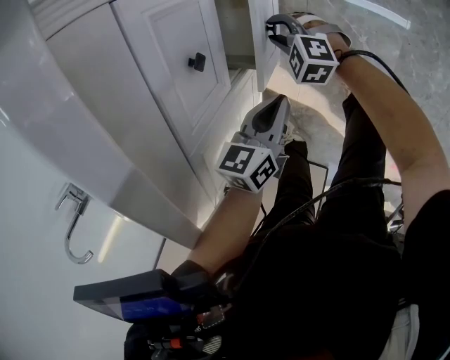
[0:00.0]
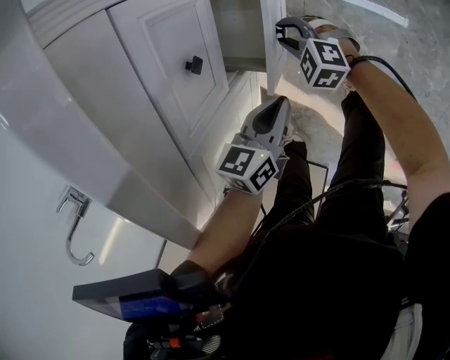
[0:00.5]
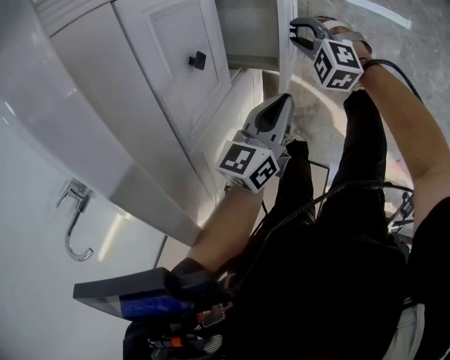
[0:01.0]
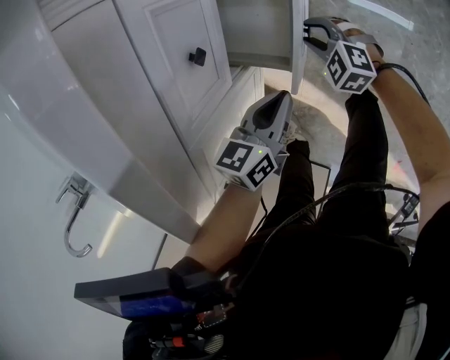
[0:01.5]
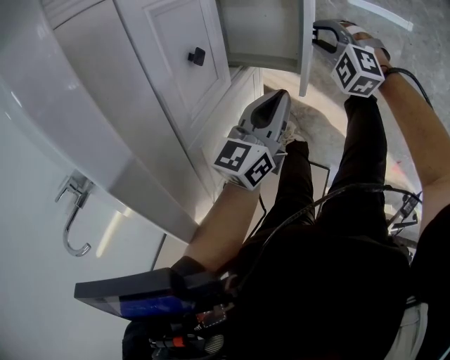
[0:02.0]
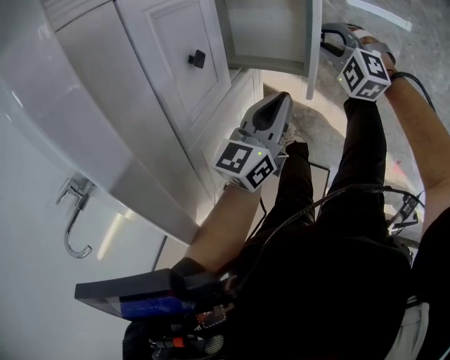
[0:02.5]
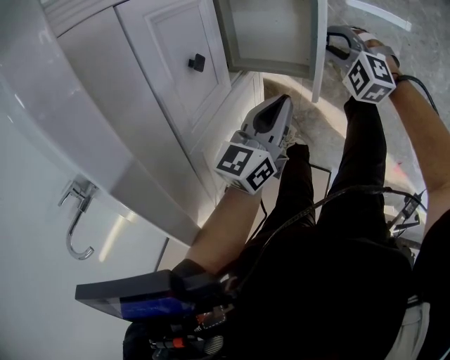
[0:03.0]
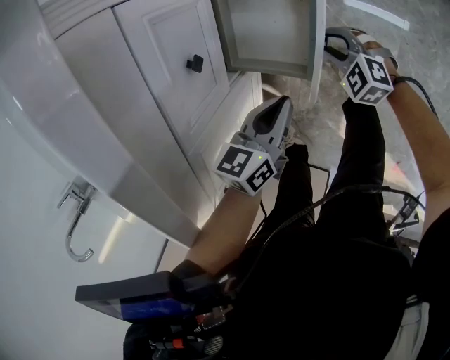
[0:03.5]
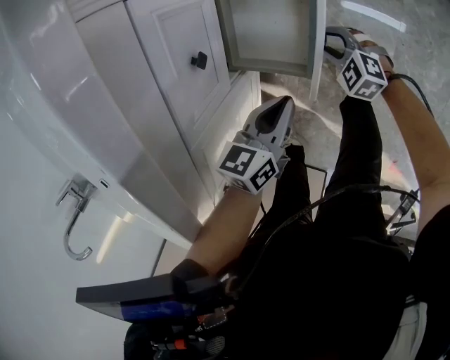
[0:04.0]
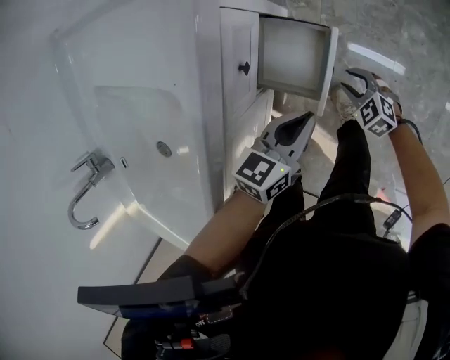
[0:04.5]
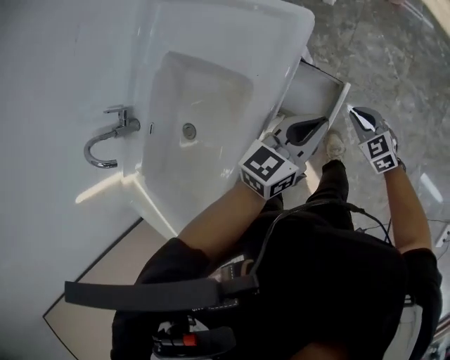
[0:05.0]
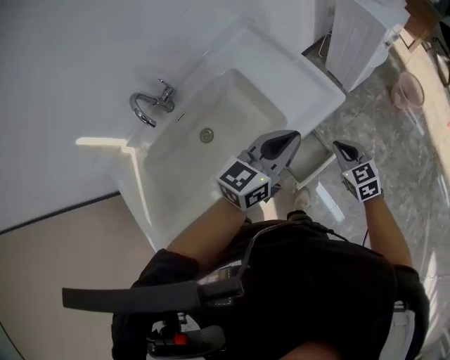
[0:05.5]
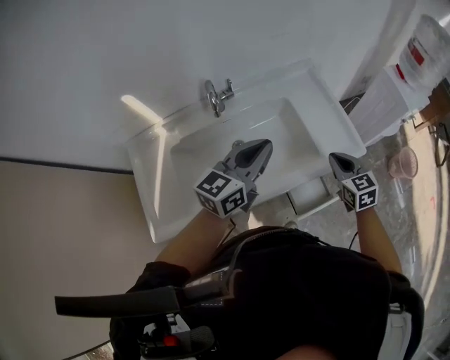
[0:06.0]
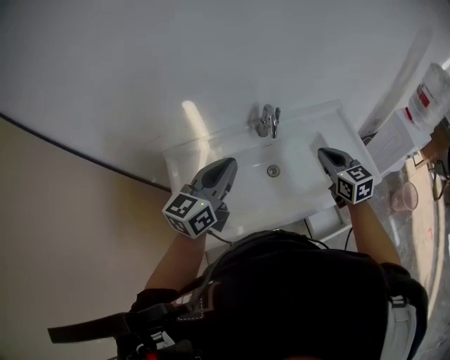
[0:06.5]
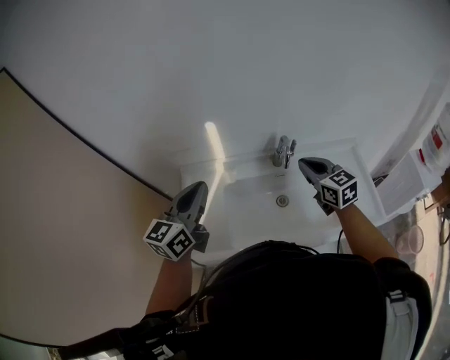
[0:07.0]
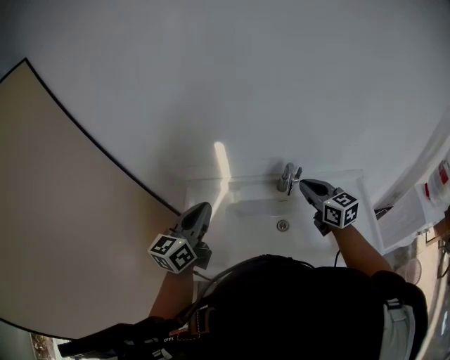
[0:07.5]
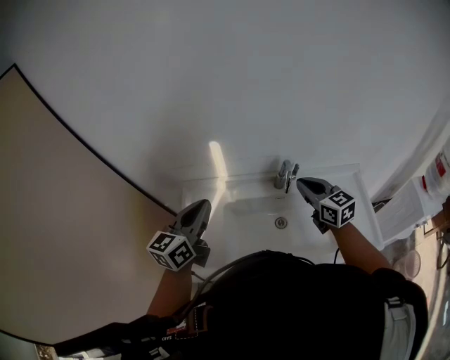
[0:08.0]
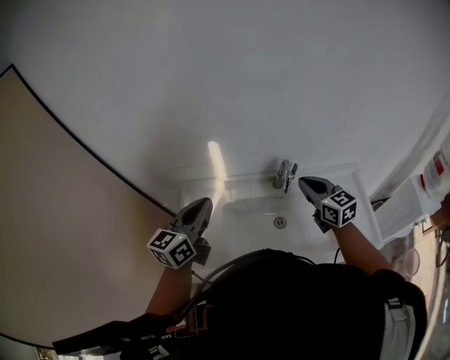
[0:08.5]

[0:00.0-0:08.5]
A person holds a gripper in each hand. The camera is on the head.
0:00.0 to 0:02.0: The right gripper goes some 10 cm to the right and backward.
0:02.0 to 0:04.0: The grippers stay close to where they were, moving slightly.
0:04.0 to 0:06.5: Both grippers are carried roughly 50 cm. Both grippers move upward, roughly 80 cm. The right gripper turns by approximately 30 degrees, and closes up. Meanwhile the left gripper tilts its fingers roughly 50 degrees upward.
0:06.5 to 0:08.5: The right gripper is displaced forward, to the left and upward by approximately 15 cm, and turns by some 20 degrees, while the left gripper travels to the left by approximately 10 cm.

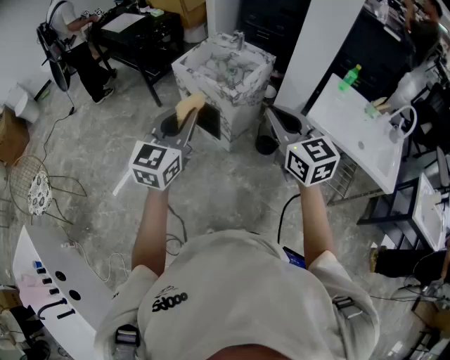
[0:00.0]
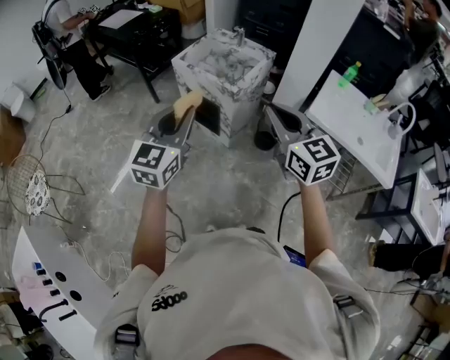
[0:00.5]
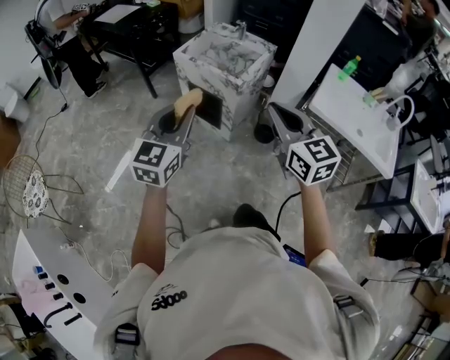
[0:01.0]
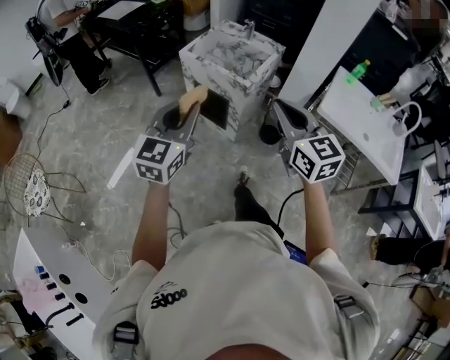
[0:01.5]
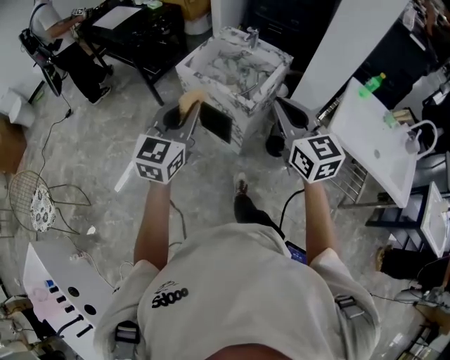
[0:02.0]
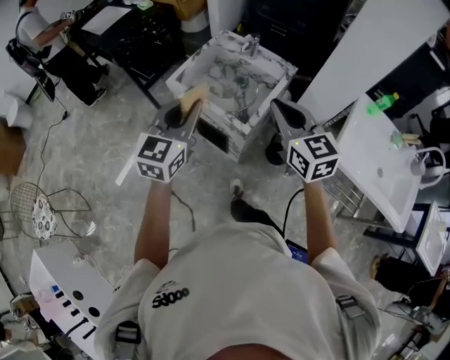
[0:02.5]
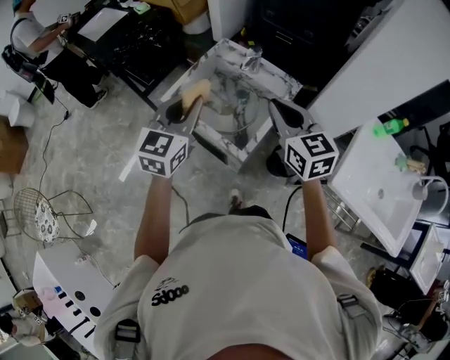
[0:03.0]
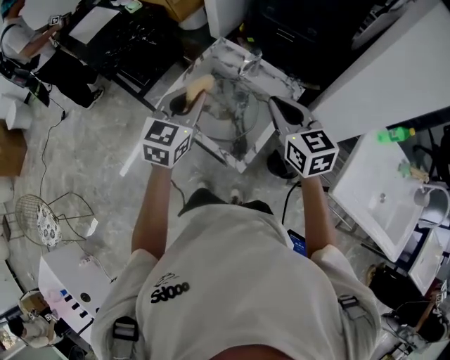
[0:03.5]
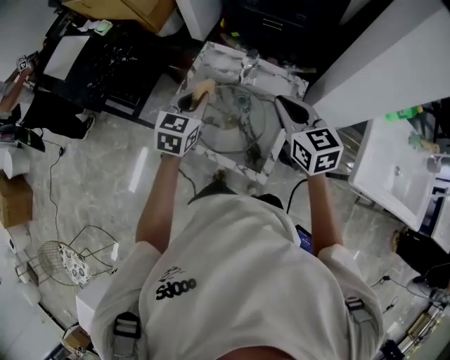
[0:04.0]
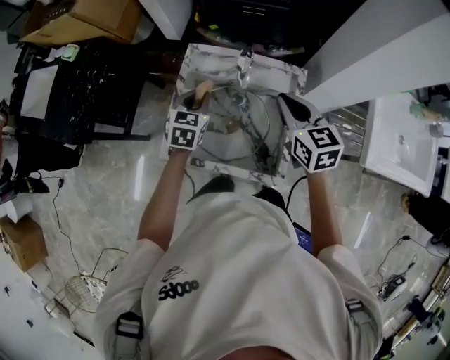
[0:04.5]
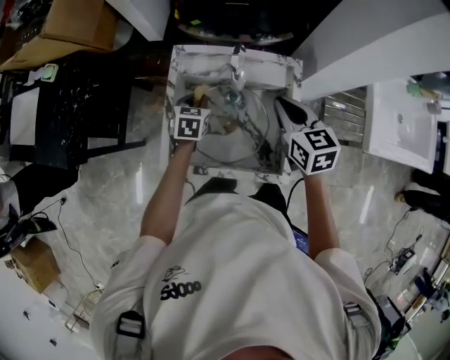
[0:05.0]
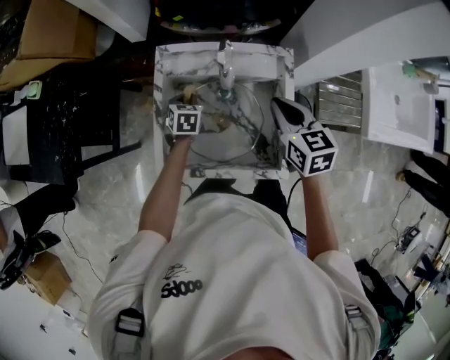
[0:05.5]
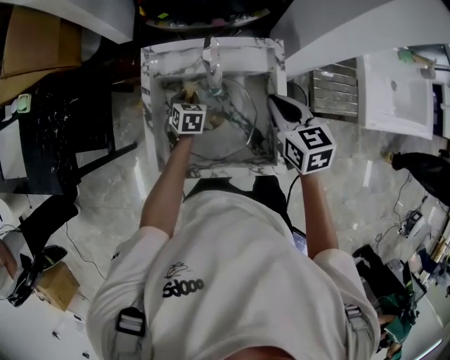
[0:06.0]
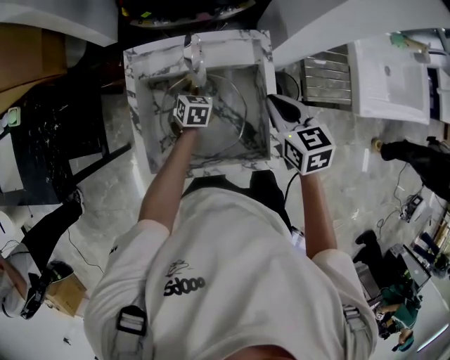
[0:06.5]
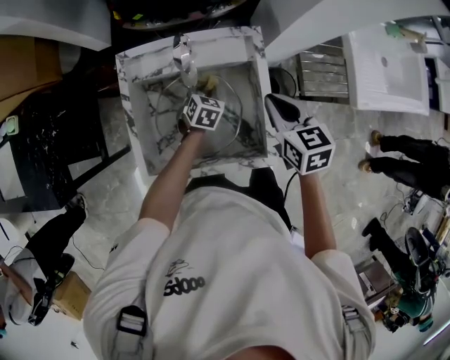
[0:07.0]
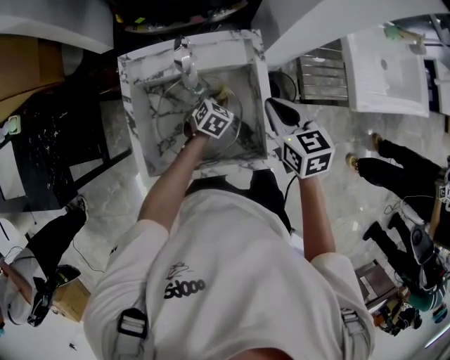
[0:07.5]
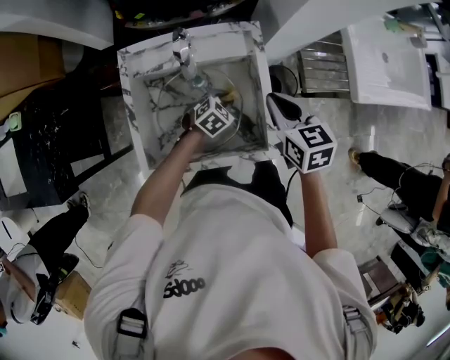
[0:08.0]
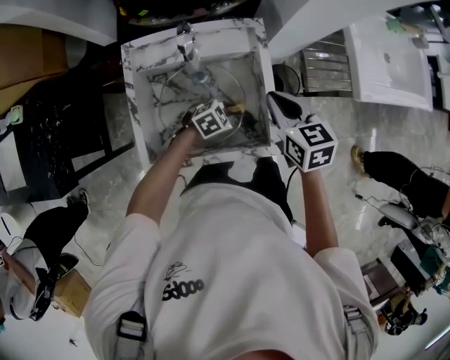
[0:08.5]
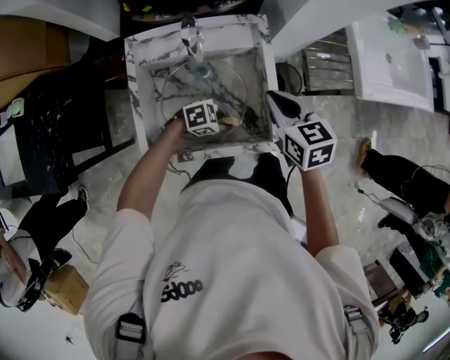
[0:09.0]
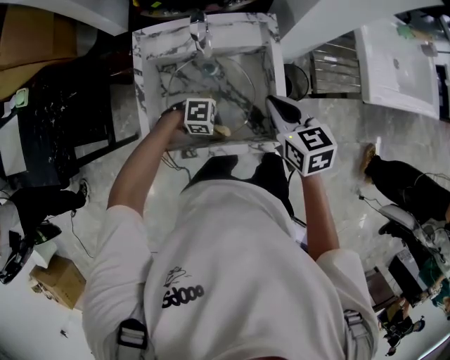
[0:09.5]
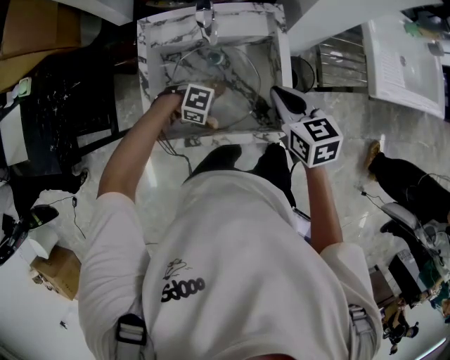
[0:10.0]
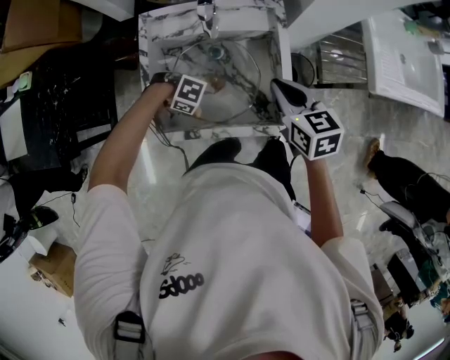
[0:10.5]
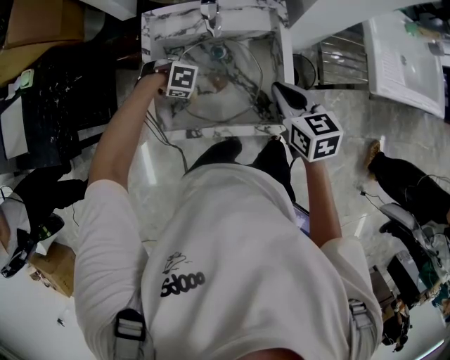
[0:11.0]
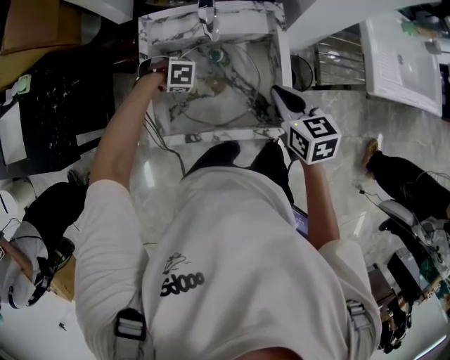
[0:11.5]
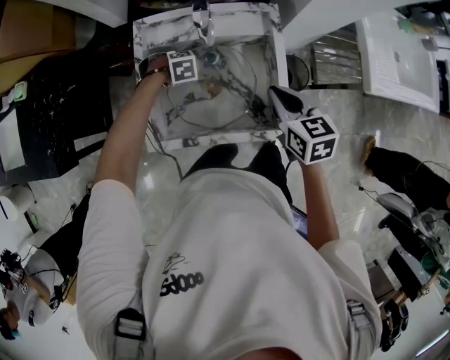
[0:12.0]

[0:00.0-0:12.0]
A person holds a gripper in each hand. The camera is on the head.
0:00.0 to 0:02.0: Both grippers move forward, approximately 15 cm.
0:02.0 to 0:04.0: The pair of grippers is taken forward, approximately 40 cm. The left gripper rotates roughly 20 degrees.
0:04.0 to 0:06.0: The right gripper shifts approximately 10 cm downward, and rotates some 30 degrees. The left gripper shifts about 30 cm downward, and changes its angle by approximately 30 degrees.
0:06.0 to 0:08.0: The left gripper moves approximately 20 cm, and turns by approximately 50 degrees, while the right gripper shifts by about 5 cm.
0:08.0 to 0:10.0: The left gripper ends up approximately 20 cm from where it was, and changes its angle by about 70 degrees. Meanwhile the right gripper changes place by approximately 5 cm.
0:10.0 to 0:12.0: The left gripper moves about 20 cm, and points its fingers about 40 degrees further downward.

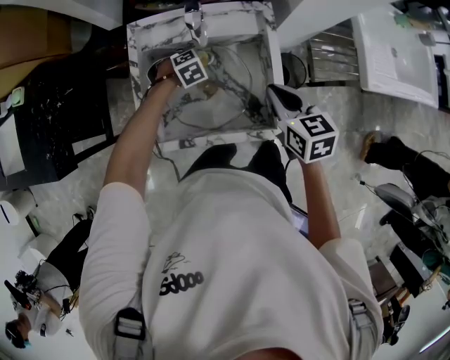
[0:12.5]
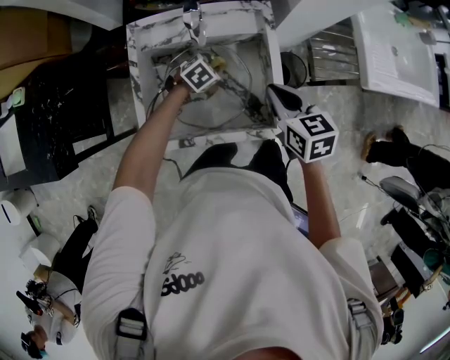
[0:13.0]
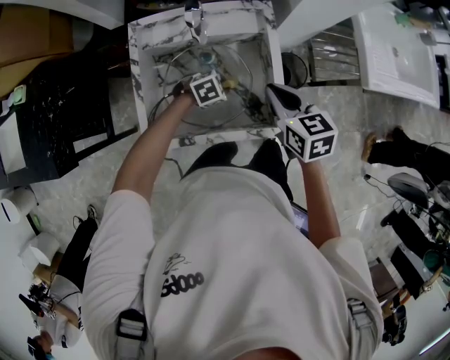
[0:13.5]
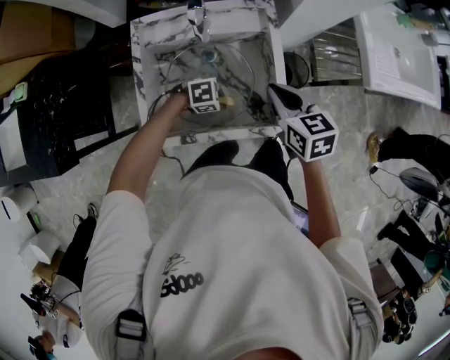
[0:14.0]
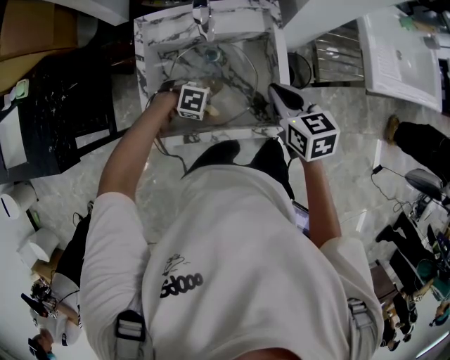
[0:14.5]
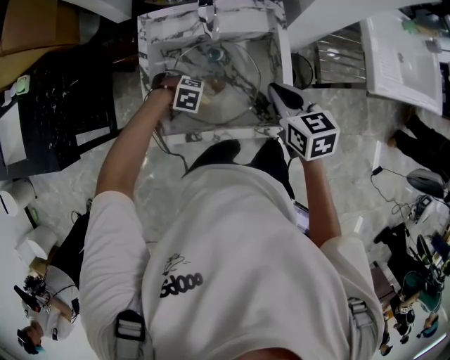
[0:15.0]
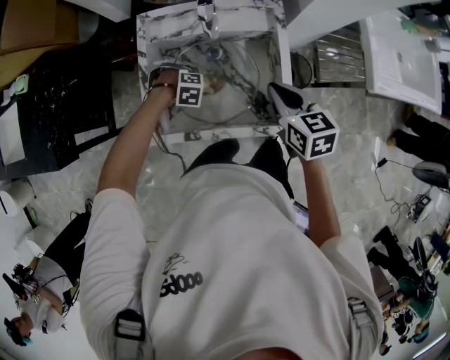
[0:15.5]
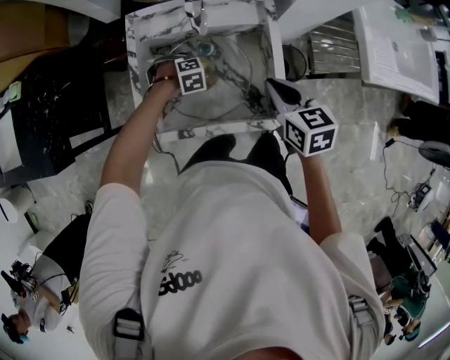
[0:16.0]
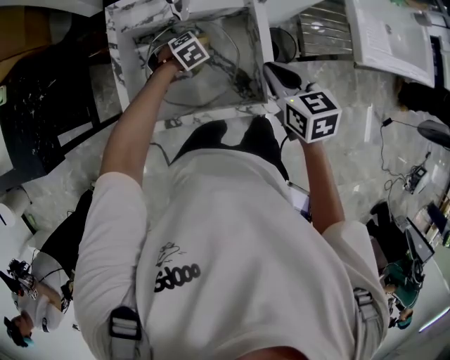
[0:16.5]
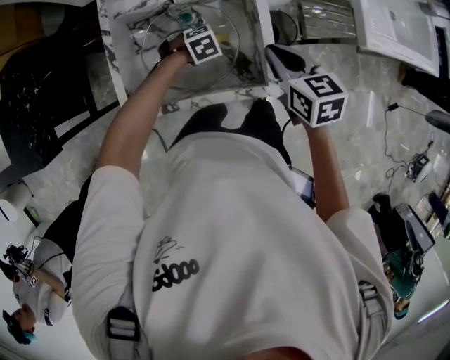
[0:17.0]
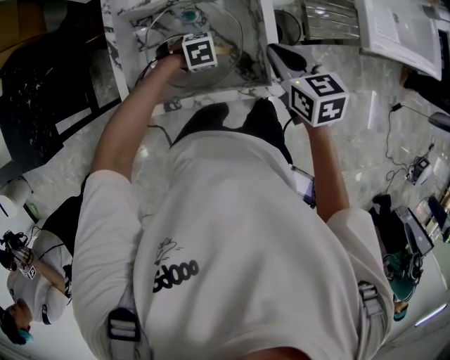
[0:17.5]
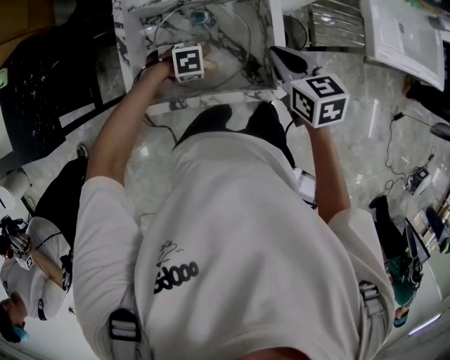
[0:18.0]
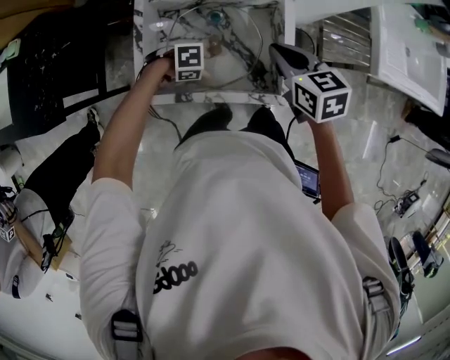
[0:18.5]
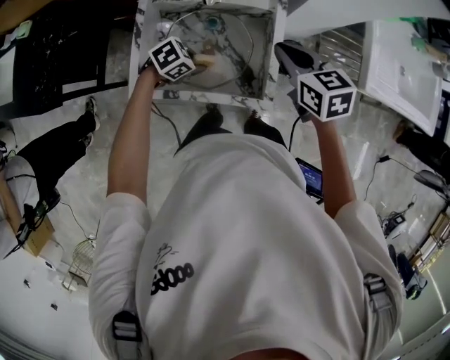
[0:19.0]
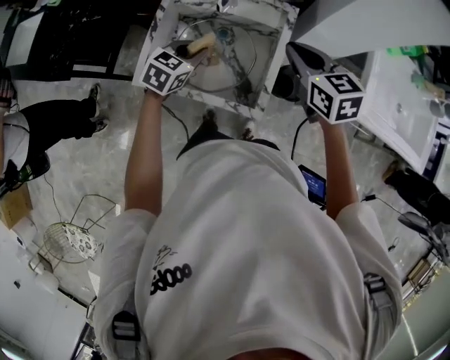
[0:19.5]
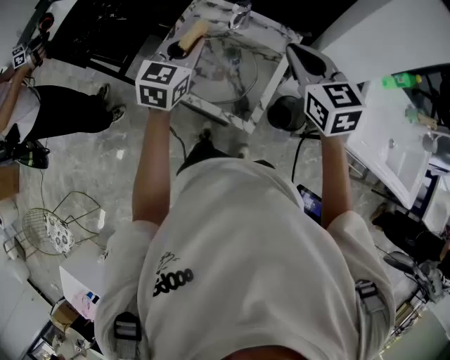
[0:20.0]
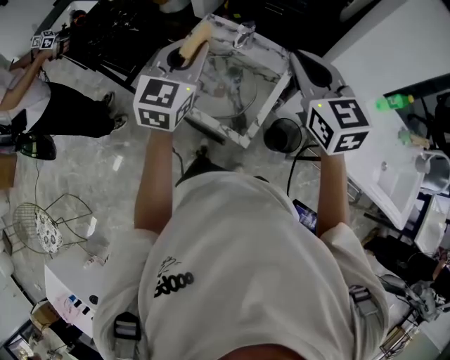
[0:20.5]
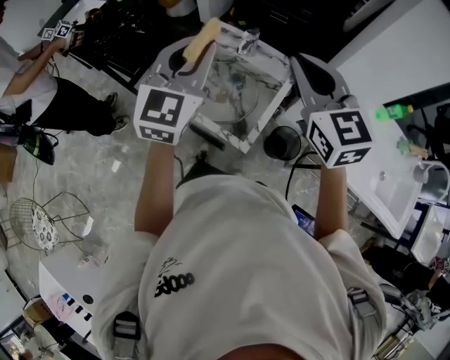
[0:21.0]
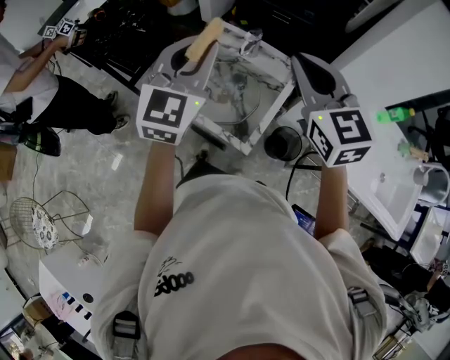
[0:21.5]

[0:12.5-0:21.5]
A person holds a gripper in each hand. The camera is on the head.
0:12.5 to 0:14.5: The left gripper shifts by approximately 20 cm, and turns by some 50 degrees.
0:14.5 to 0:17.0: The left gripper shifts by some 15 cm, and rotates roughly 40 degrees.
0:17.0 to 0:19.5: The right gripper shifts about 10 cm upward, and turns by about 30 degrees. The left gripper is displaced upward by approximately 20 cm, and swivels some 60 degrees.
0:19.5 to 0:21.5: The right gripper goes some 20 cm upward, and swivels some 30 degrees. Meanwhile the left gripper moves upward, roughly 30 cm, and angles its fingers upward, by roughly 40 degrees.
